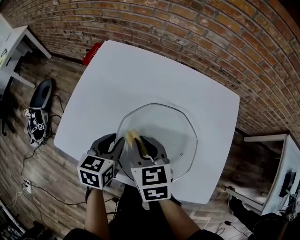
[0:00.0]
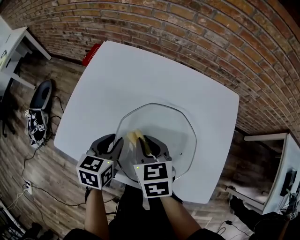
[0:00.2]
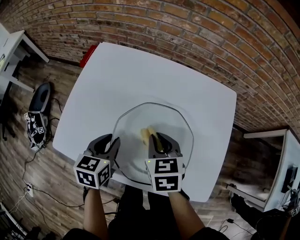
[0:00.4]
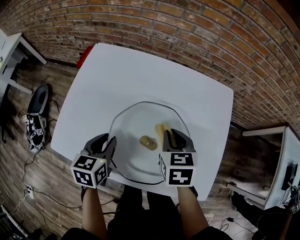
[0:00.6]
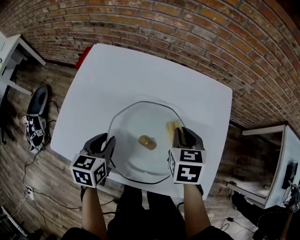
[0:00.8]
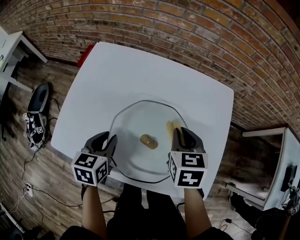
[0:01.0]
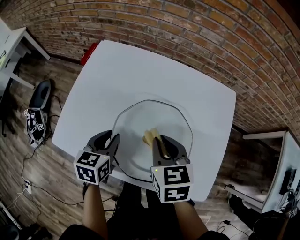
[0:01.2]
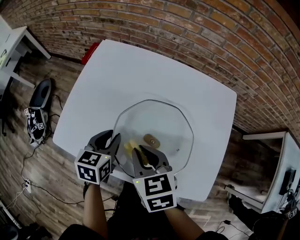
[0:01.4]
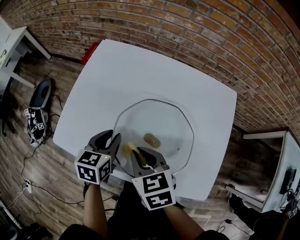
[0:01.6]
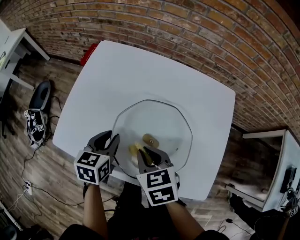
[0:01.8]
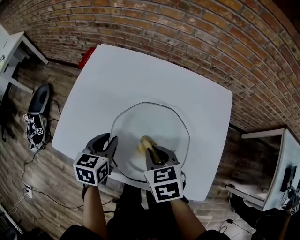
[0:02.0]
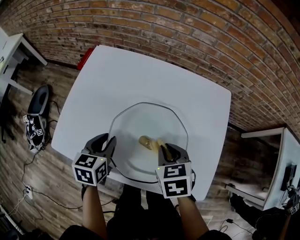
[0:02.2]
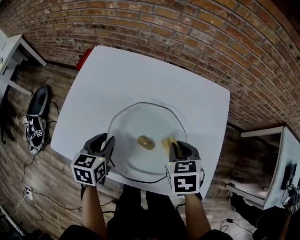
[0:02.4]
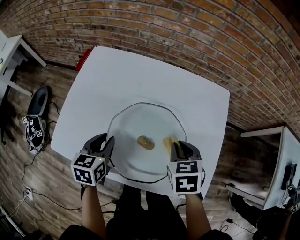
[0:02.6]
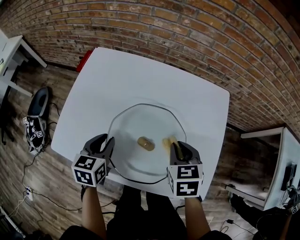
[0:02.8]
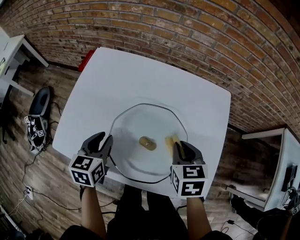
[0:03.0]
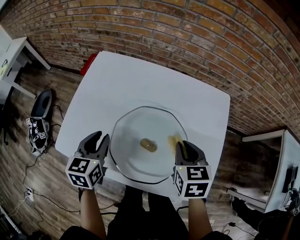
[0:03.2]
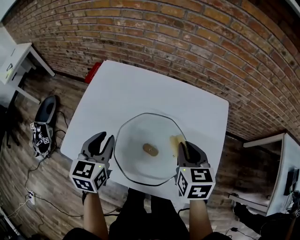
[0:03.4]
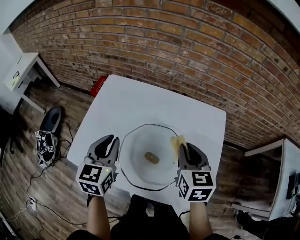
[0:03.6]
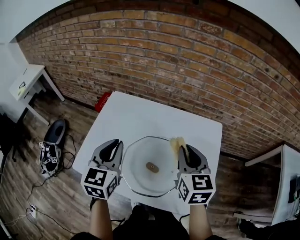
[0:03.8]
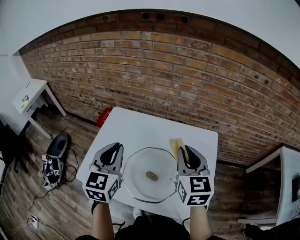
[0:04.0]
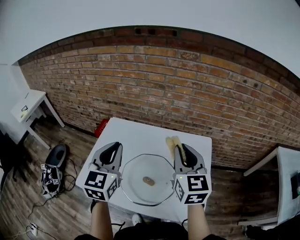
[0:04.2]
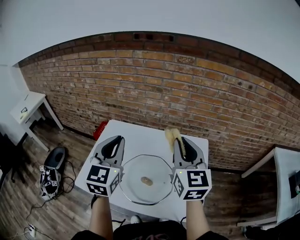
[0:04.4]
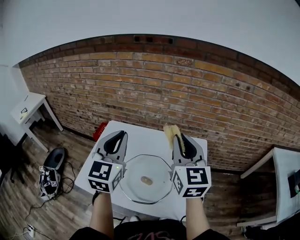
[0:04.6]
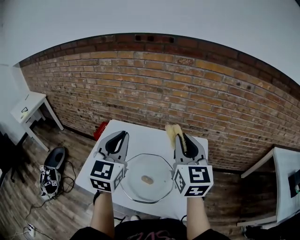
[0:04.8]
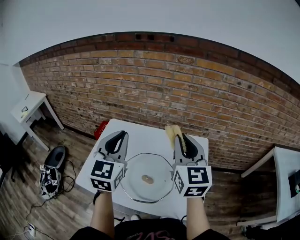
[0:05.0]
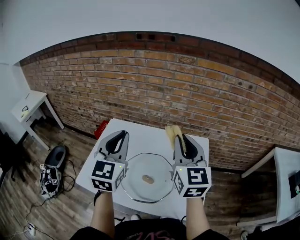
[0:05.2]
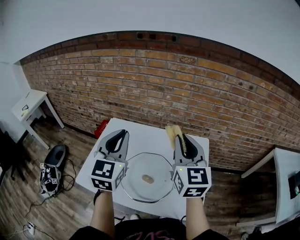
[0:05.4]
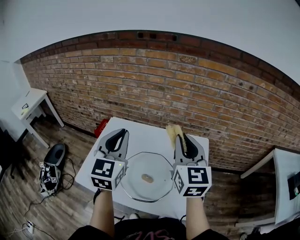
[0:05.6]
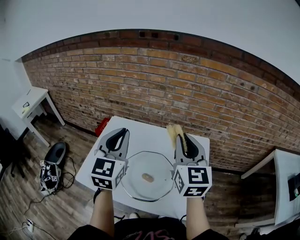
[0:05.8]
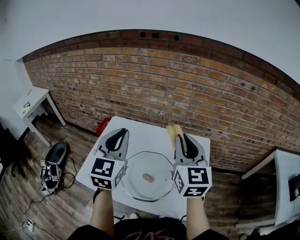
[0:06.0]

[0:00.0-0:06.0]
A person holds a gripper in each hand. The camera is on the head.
0.0 to 1.6 s: The right gripper moves backward, approximately 5 cm, and reaches some 20 cm to the right, then returns.
1.6 to 3.0 s: The right gripper travels to the right by about 15 cm, and rotates some 20 degrees.
3.0 to 4.4 s: The two grippers go about 30 cm upward. The left gripper tips its fingers upward by roughly 30 degrees. Meanwhile the right gripper angles its fingers upward, by some 50 degrees.
4.4 to 6.0 s: The grippers move only a little.

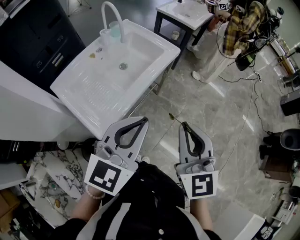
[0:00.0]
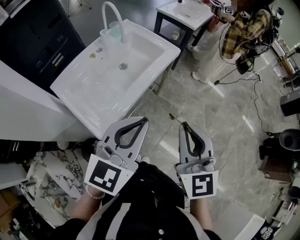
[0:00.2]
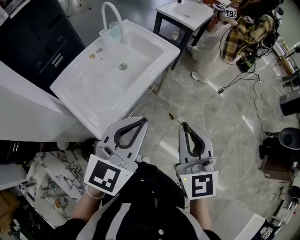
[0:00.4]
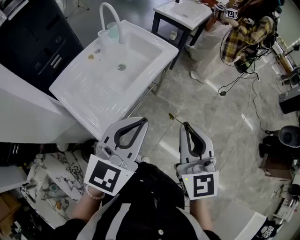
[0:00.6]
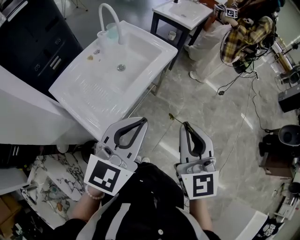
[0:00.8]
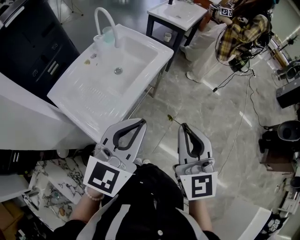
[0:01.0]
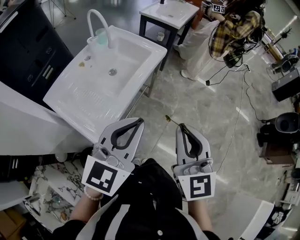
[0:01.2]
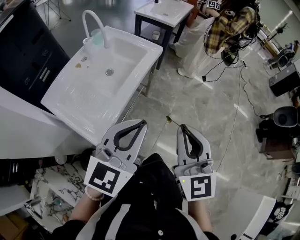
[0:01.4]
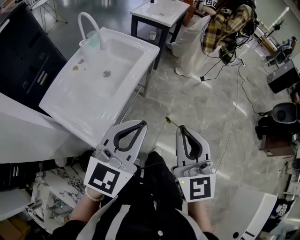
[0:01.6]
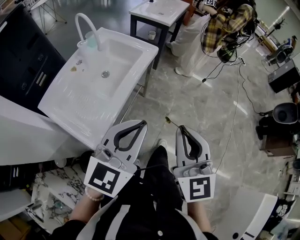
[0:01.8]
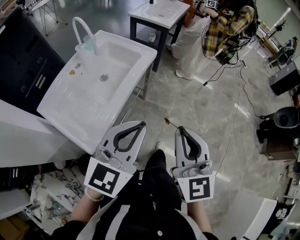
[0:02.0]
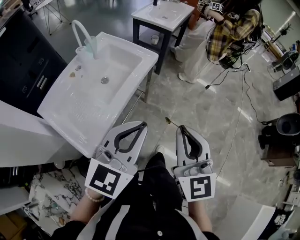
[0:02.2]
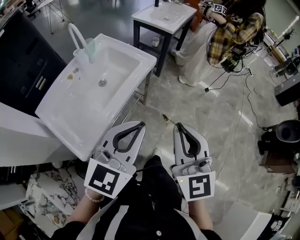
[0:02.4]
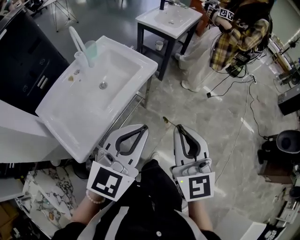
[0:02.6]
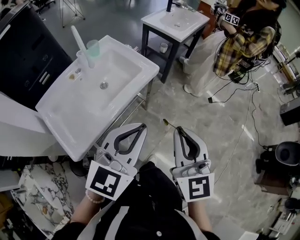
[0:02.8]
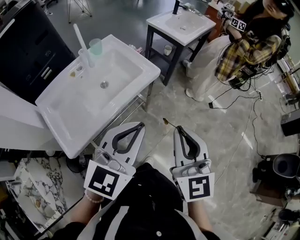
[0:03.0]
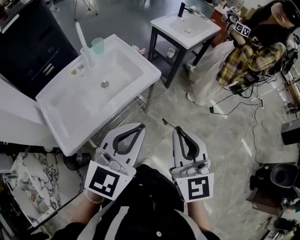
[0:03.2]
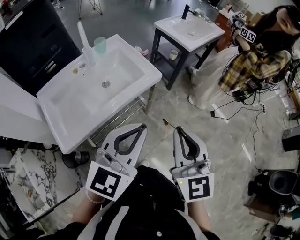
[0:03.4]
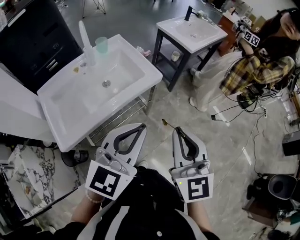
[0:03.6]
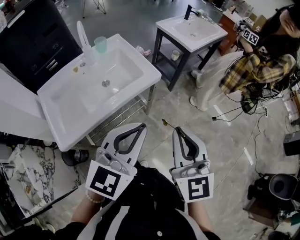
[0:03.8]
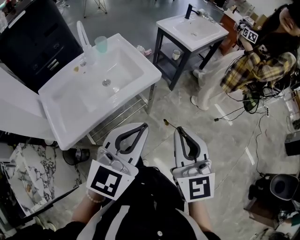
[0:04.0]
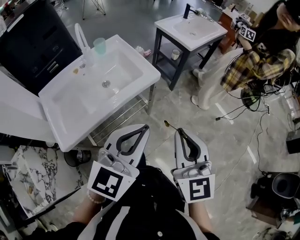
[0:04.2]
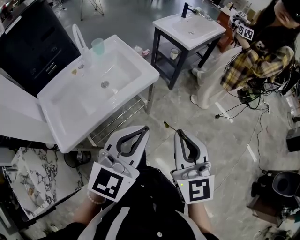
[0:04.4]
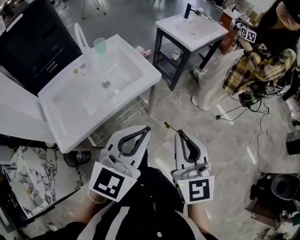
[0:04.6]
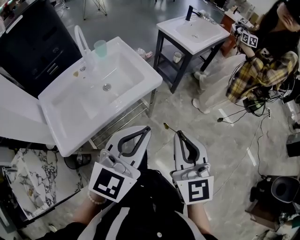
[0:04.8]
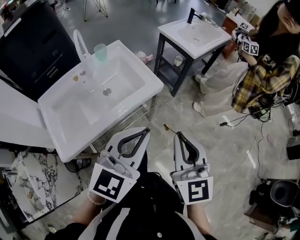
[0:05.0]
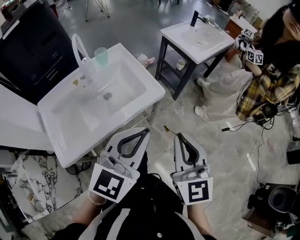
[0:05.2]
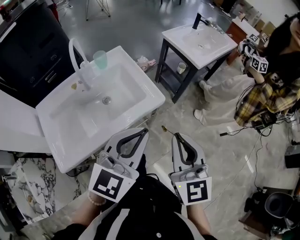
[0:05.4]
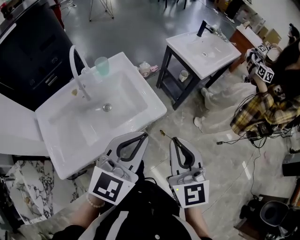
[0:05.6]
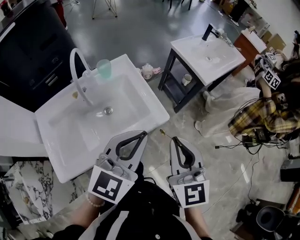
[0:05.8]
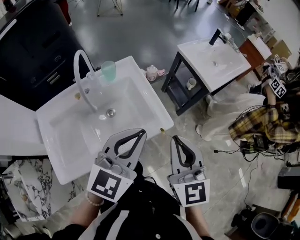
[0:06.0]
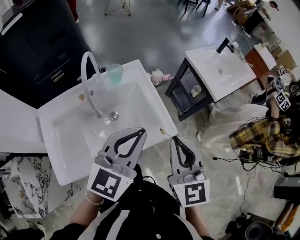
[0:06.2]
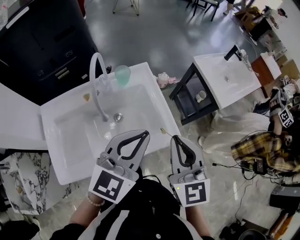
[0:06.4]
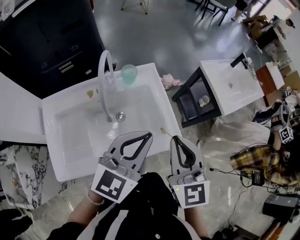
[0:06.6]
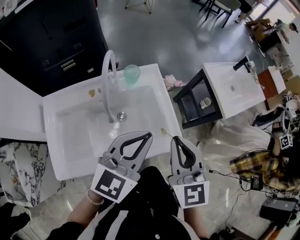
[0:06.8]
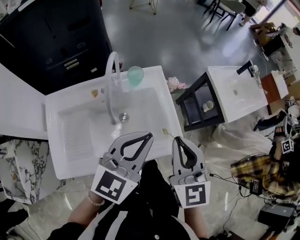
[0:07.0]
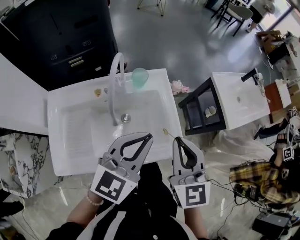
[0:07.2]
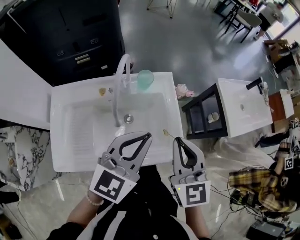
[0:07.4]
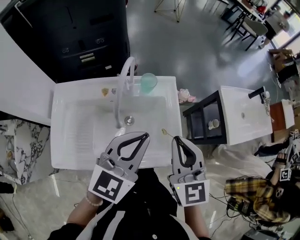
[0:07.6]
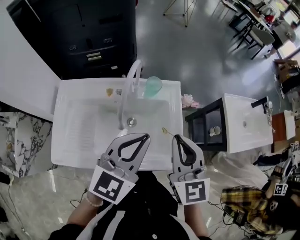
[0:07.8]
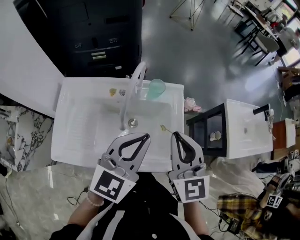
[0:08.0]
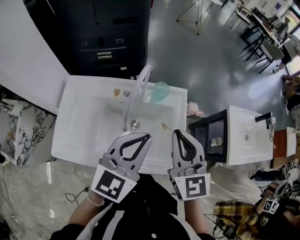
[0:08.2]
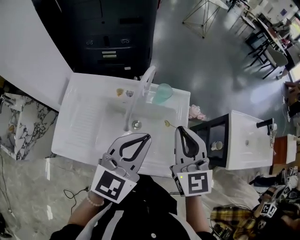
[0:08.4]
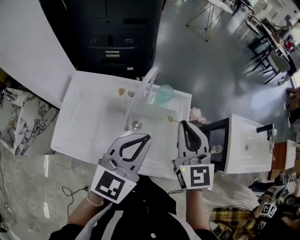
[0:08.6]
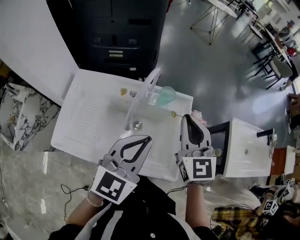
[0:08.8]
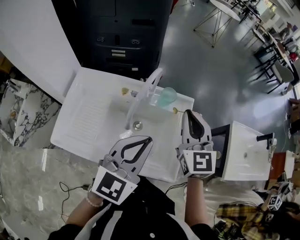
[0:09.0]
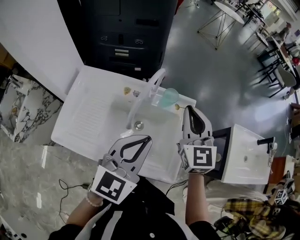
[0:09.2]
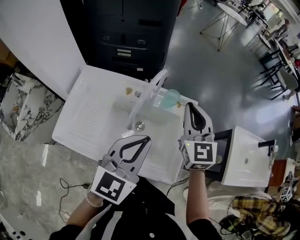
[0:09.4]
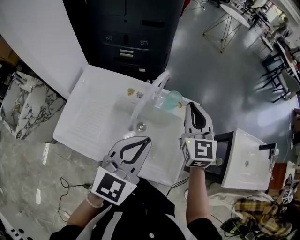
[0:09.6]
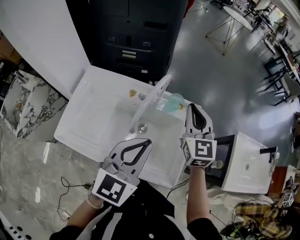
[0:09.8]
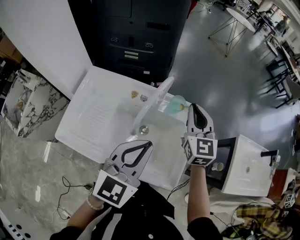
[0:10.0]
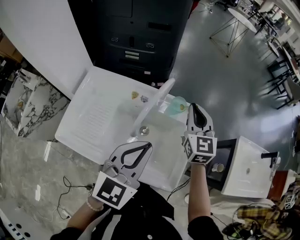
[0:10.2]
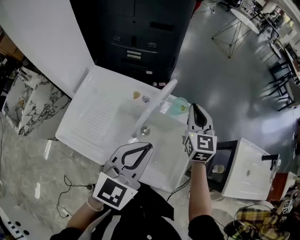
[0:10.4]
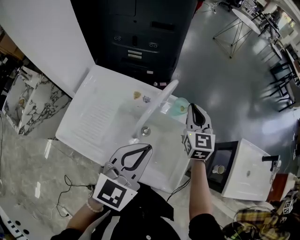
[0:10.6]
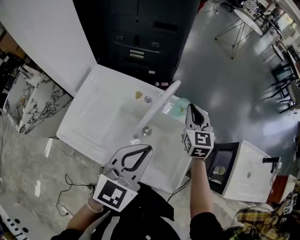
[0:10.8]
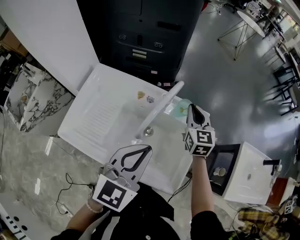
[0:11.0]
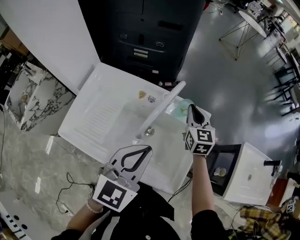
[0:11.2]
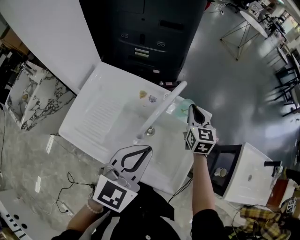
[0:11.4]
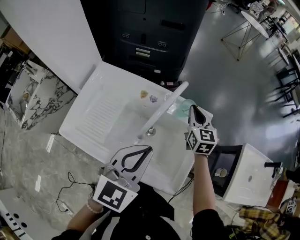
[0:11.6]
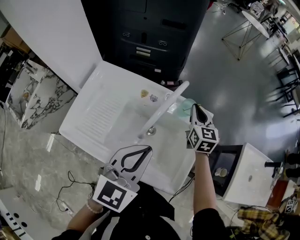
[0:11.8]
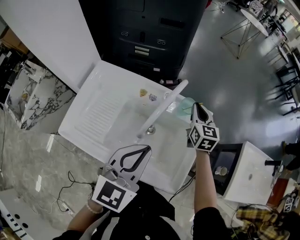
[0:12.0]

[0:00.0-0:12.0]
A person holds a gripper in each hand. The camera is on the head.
0.0 to 1.6 s: There are only small adjustments of the grippers.
1.6 to 3.0 s: Both grippers move forward and to the right, roughly 20 cm.
3.0 to 4.4 s: Both grippers travel together to the right, about 5 cm.
4.4 to 6.0 s: The left gripper shifts some 25 cm forward and to the left, while the right gripper heads forward, covering approximately 25 cm.
6.0 to 7.6 s: Both grippers move forward and to the left, approximately 15 cm. The right gripper changes its angle by approximately 20 degrees. Meanwhile the left gripper swivels some 20 degrees.
7.6 to 9.0 s: The right gripper heads forward, covering approximately 15 cm.
9.0 to 10.4 s: The right gripper moves forward and downward, approximately 10 cm.
10.4 to 12.0 s: The right gripper is displaced downward by approximately 10 cm.

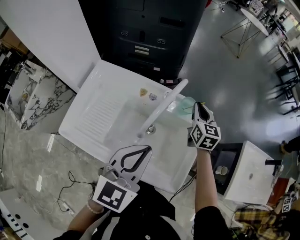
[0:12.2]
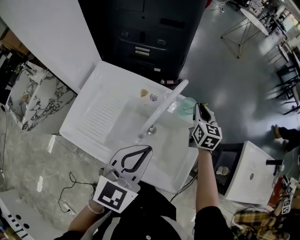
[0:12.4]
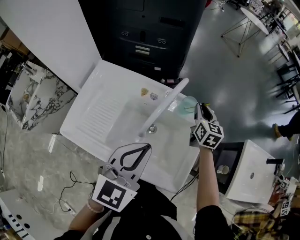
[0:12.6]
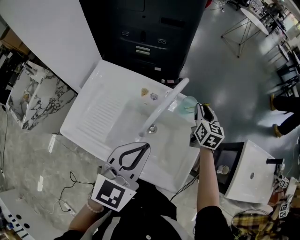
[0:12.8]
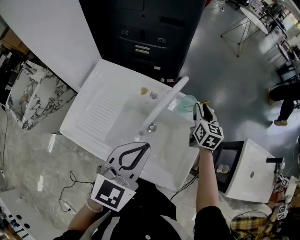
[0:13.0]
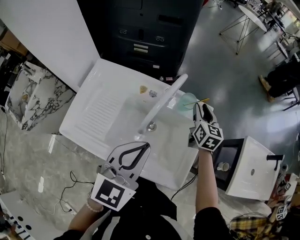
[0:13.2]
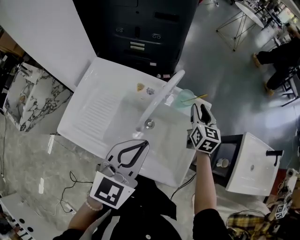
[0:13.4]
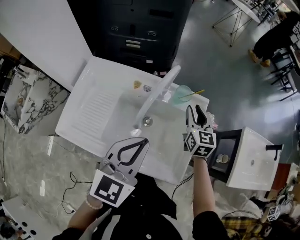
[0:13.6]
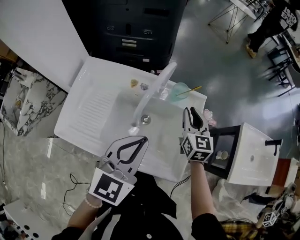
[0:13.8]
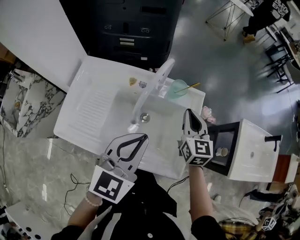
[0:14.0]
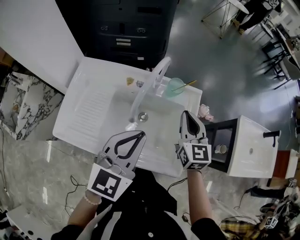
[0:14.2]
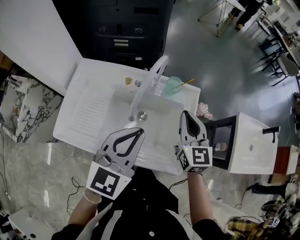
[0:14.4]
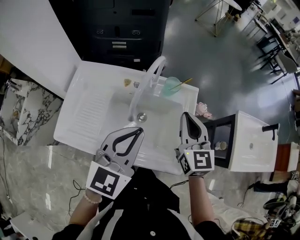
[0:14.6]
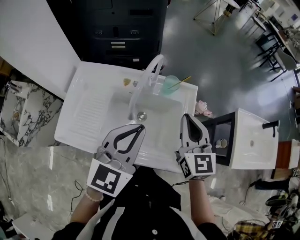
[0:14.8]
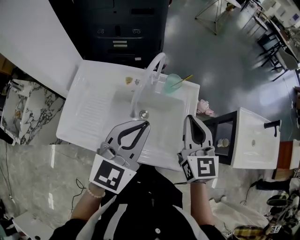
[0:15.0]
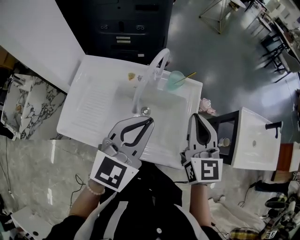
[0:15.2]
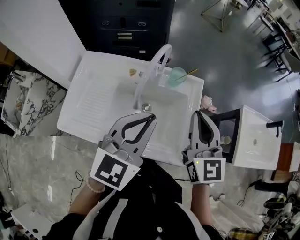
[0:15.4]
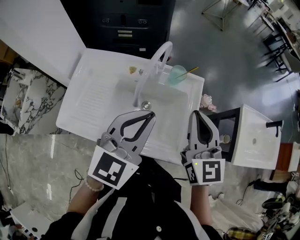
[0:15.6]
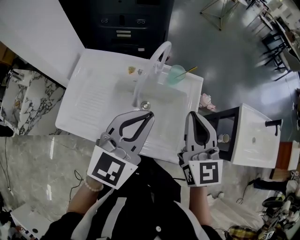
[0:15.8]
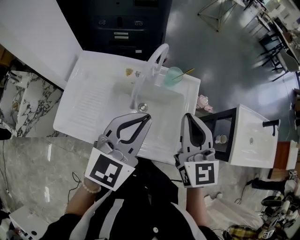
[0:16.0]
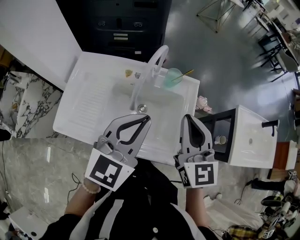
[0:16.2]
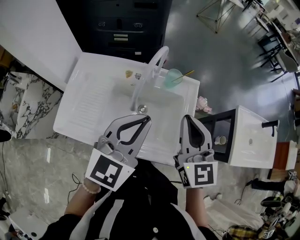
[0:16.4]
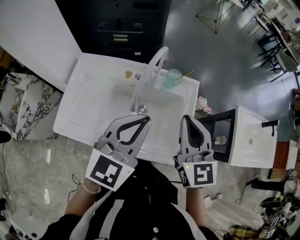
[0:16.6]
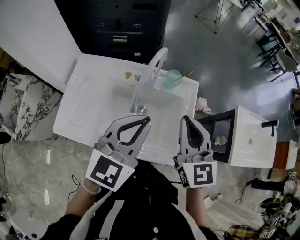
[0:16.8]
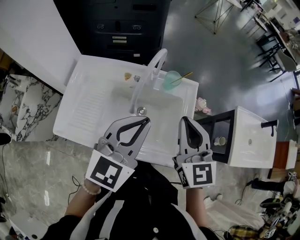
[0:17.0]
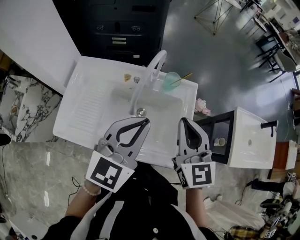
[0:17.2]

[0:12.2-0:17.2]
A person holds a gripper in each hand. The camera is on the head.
12.2 to 13.8 s: The right gripper is displaced backward by some 10 cm.
13.8 to 15.6 s: The right gripper moves upward and backward, roughly 20 cm, and closes up.
15.6 to 17.2 s: There are only small adjustments of the grippers.

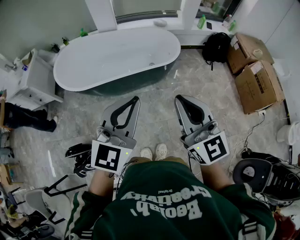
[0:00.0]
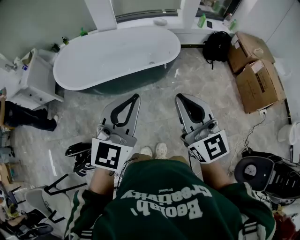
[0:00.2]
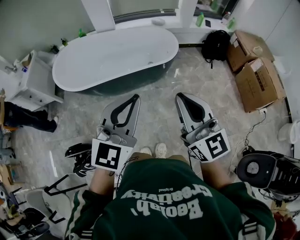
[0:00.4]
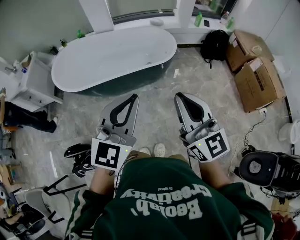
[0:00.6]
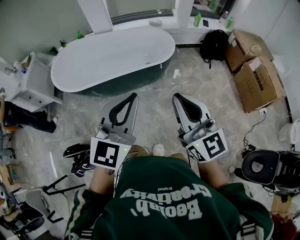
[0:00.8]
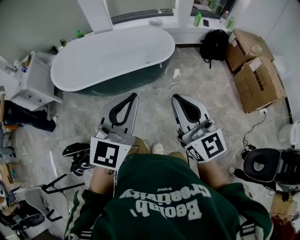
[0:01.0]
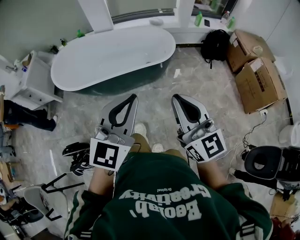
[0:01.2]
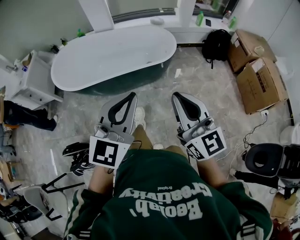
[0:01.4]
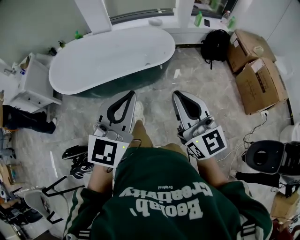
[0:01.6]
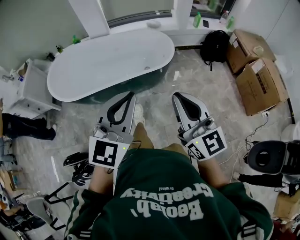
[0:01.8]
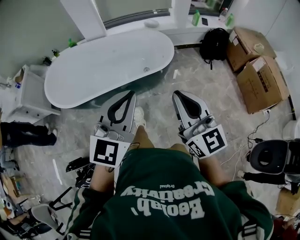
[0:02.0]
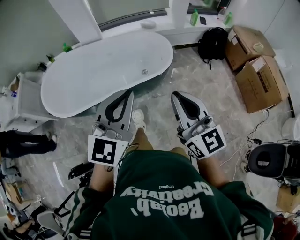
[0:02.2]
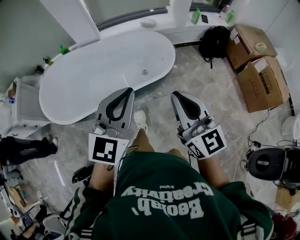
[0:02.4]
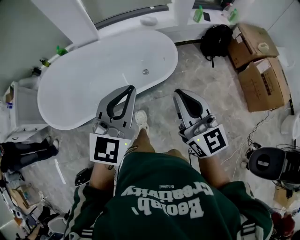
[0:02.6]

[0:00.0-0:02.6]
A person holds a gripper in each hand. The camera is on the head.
0.0 to 1.2 s: Both grippers move to the right, approximately 5 cm.
1.2 to 2.6 s: The two grippers go about 30 cm forward.
